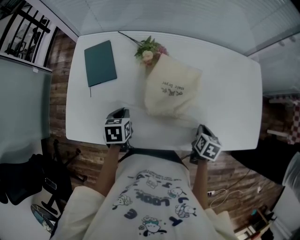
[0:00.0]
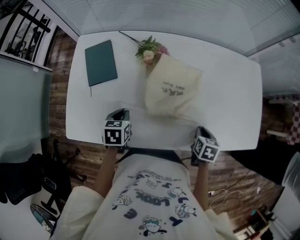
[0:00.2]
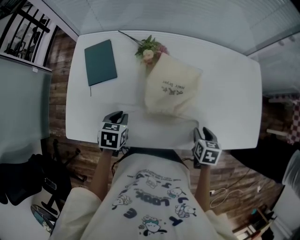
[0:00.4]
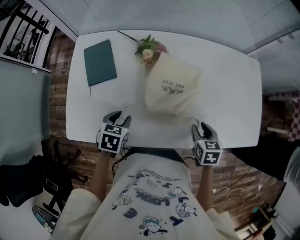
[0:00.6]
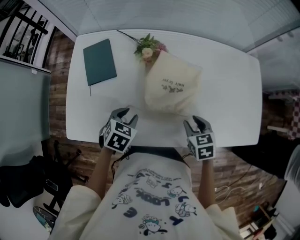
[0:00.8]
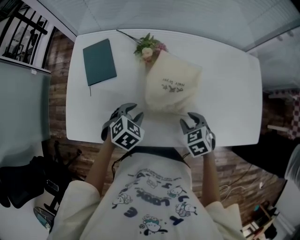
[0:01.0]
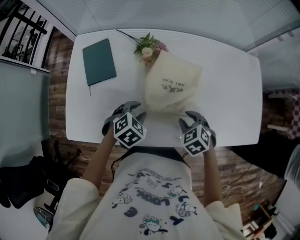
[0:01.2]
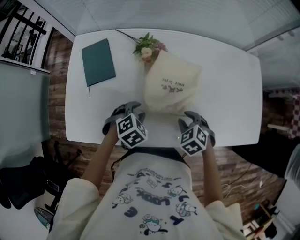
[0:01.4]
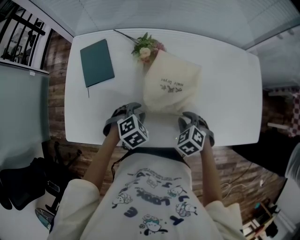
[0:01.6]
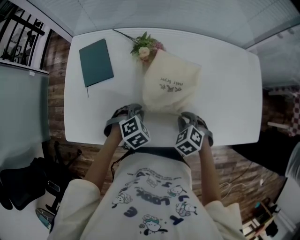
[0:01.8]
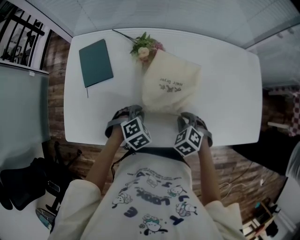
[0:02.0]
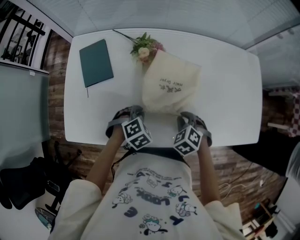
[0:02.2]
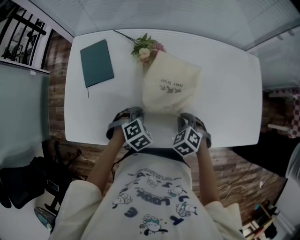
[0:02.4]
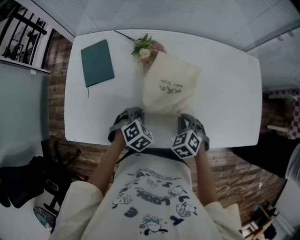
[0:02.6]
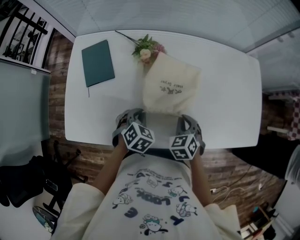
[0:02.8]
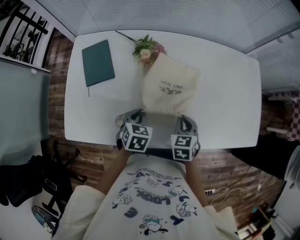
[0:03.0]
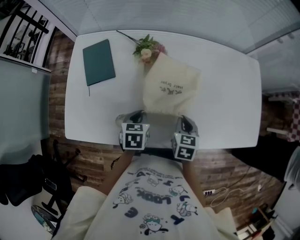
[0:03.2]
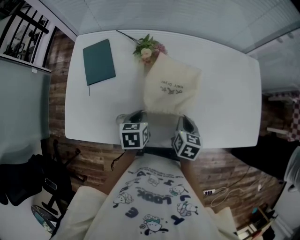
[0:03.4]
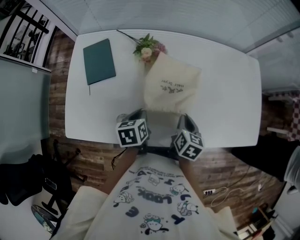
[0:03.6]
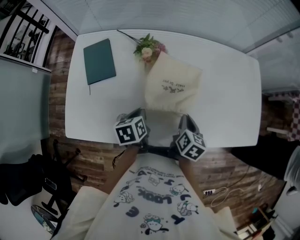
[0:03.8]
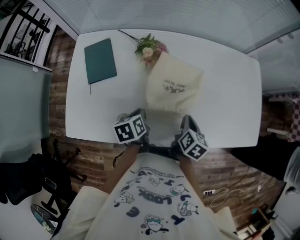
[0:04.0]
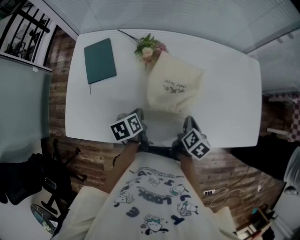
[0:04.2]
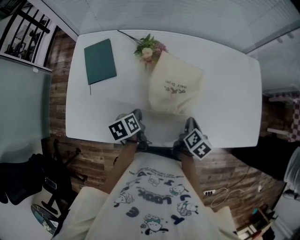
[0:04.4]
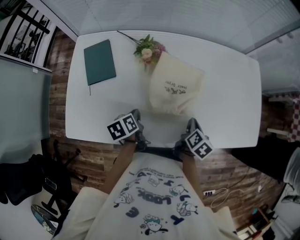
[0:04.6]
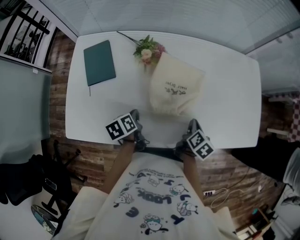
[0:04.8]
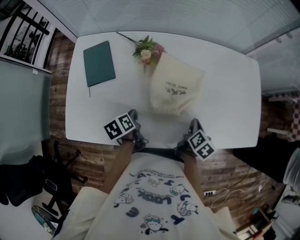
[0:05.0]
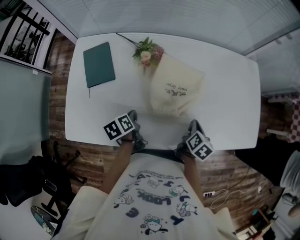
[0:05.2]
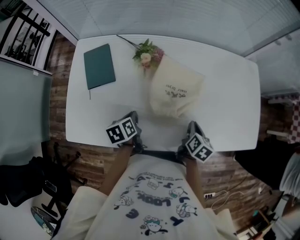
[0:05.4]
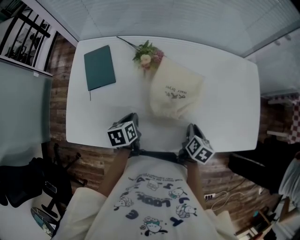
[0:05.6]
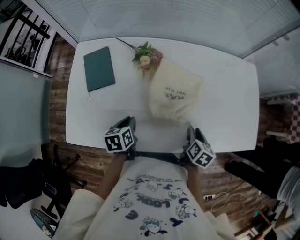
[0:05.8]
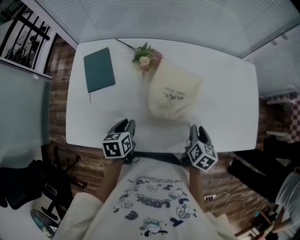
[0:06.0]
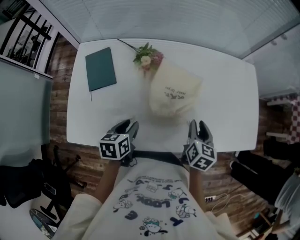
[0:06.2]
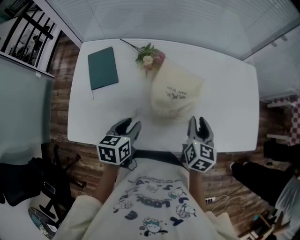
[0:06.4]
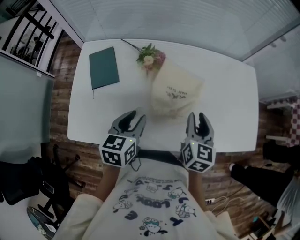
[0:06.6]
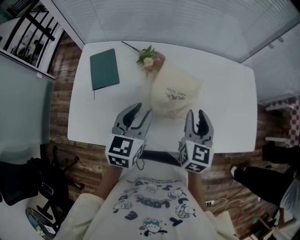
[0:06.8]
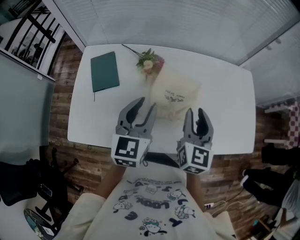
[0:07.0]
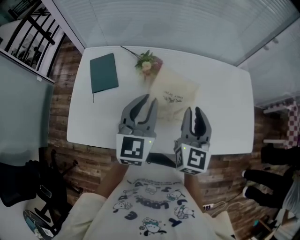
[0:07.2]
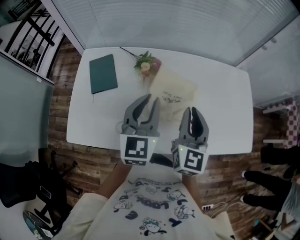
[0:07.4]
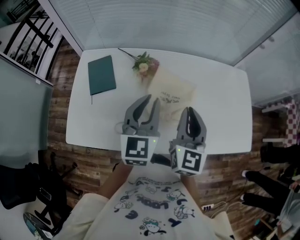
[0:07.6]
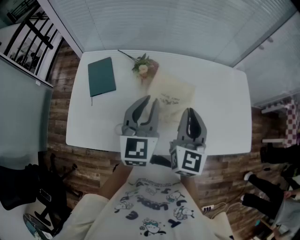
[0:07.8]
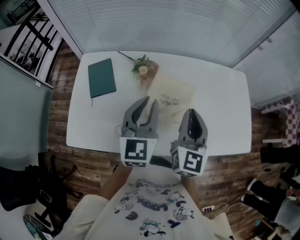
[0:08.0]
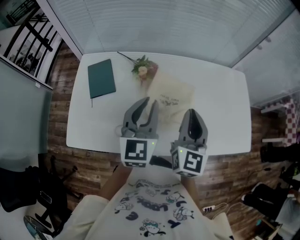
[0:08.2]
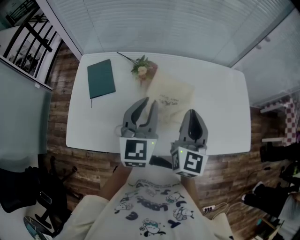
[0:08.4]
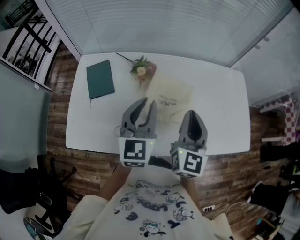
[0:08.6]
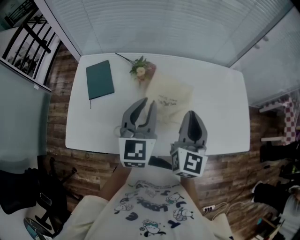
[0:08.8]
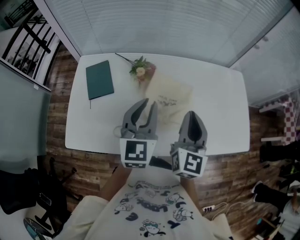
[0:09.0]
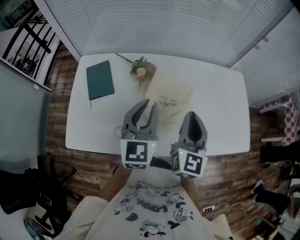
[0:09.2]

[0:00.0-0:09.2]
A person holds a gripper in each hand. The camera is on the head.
0:00.0 to 0:01.6: The left gripper shifts approximately 10 cm to the right, twists about 60 degrees clockwise, seen from behind, and opens its fingers. Meanwhile the right gripper is displaced to the left by roughly 15 cm, and rotates around the line of its fingers by about 70 degrees, counterclockwise from behind.
0:01.6 to 0:03.0: The right gripper rotates some 40 degrees. The left gripper rotates approximately 40 degrees, and closes.
0:03.0 to 0:04.6: The right gripper travels to the right by roughly 10 cm, and rotates around the line of its fingers by some 50 degrees, clockwise from behind. The left gripper rolls counterclockwise, seen from behind, by roughly 50 degrees.
0:04.6 to 0:06.2: The two grippers go roughly 5 cm upward. The left gripper changes its angle by roughly 30 degrees, and opens up. The right gripper turns by some 30 degrees, and opens its fingers.
0:06.2 to 0:07.6: The right gripper shifts approximately 20 cm upward and to the left, points its fingers approximately 30 degrees further upward, and closes its fingers; the left gripper is displaced upward and forward by about 20 cm, and angles its fingers upward, by about 40 degrees.
0:07.6 to 0:09.2: The grippers stay close to where they were, moving slightly.

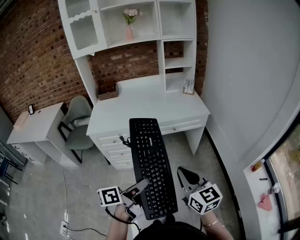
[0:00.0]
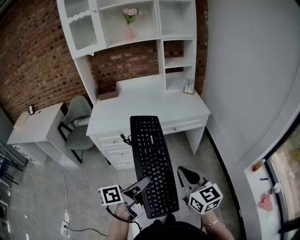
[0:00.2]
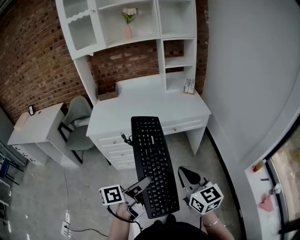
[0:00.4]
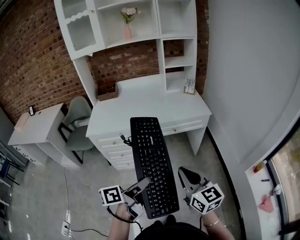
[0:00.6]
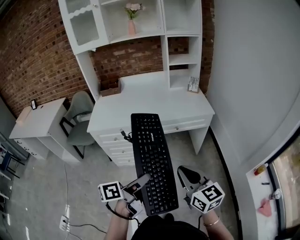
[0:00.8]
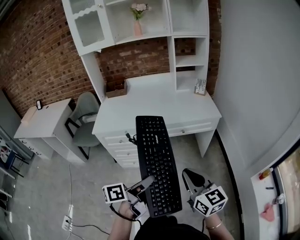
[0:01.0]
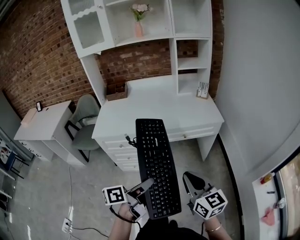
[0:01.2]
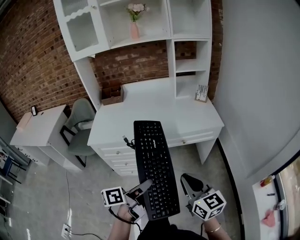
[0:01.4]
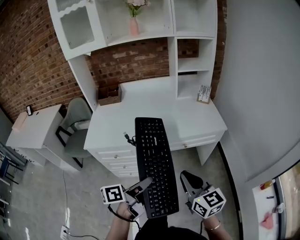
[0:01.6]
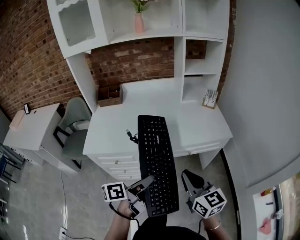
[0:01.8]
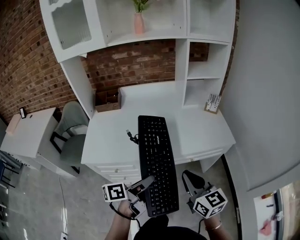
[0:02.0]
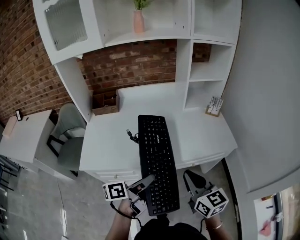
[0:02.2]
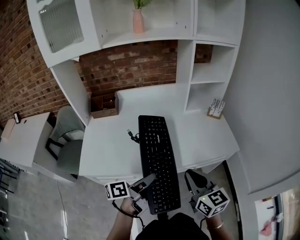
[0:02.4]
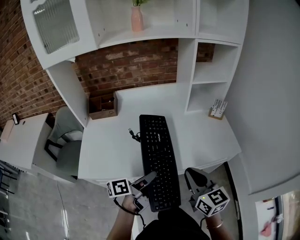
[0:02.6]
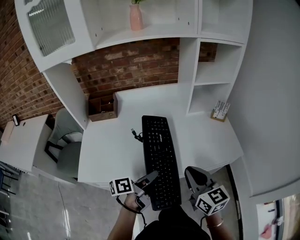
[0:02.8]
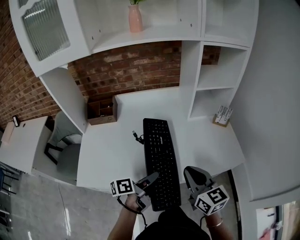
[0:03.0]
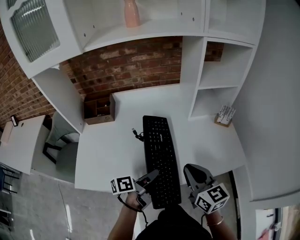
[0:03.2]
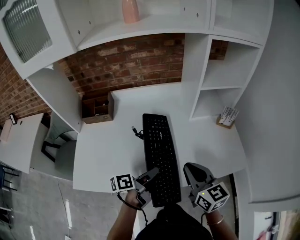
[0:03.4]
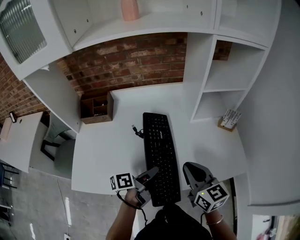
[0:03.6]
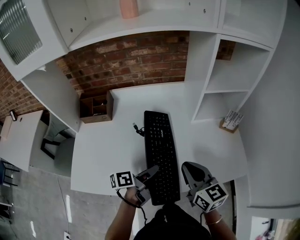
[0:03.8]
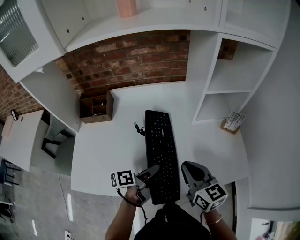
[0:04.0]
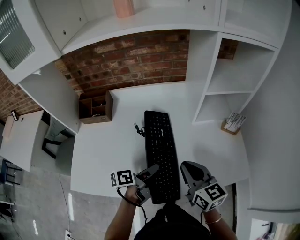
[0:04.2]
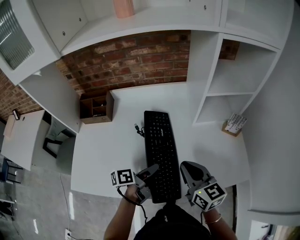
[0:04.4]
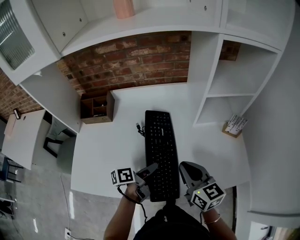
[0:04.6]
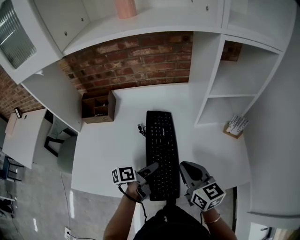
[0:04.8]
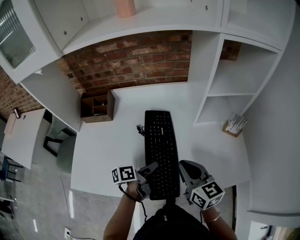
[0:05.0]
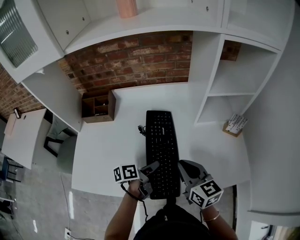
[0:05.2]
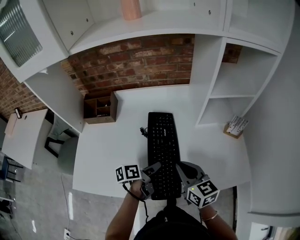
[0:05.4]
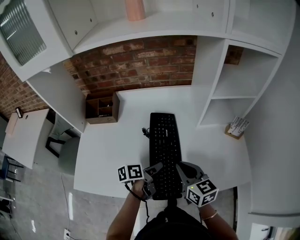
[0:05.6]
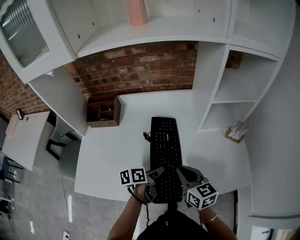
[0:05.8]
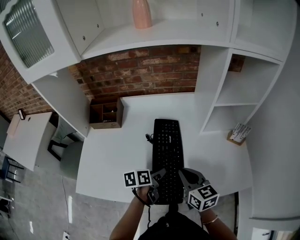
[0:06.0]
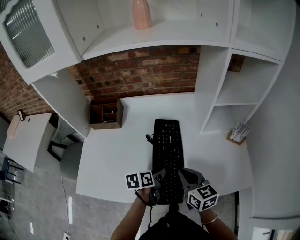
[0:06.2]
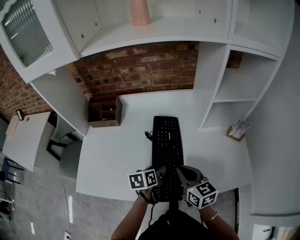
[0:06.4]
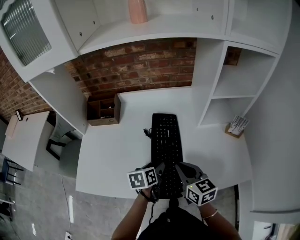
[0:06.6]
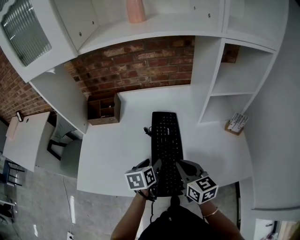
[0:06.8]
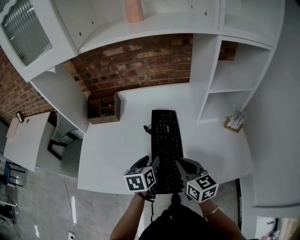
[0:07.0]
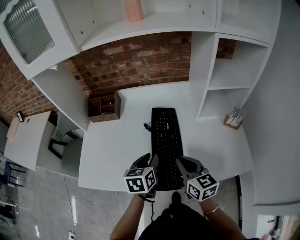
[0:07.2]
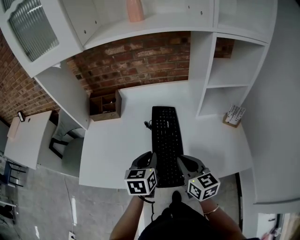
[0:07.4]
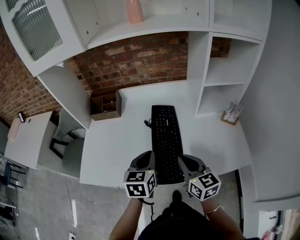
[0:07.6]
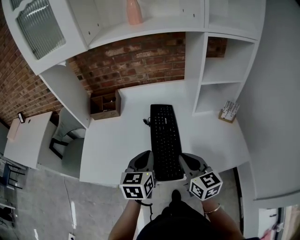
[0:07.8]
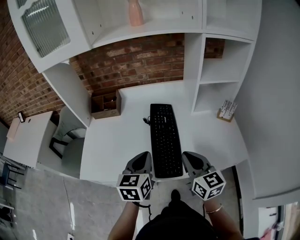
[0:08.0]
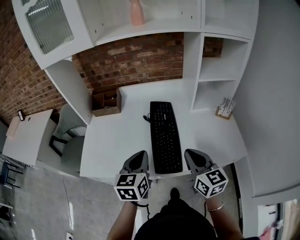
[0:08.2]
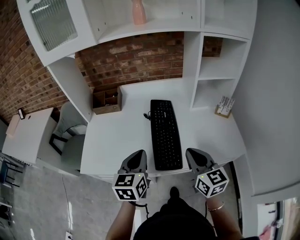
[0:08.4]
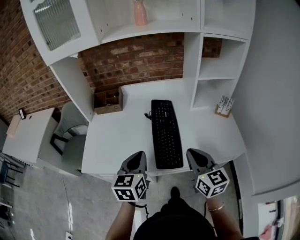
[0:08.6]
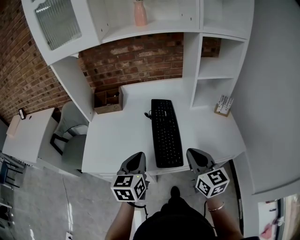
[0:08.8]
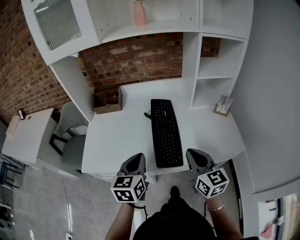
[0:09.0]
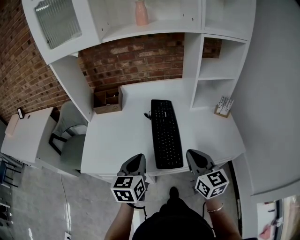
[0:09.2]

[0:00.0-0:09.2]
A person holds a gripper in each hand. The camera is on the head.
0:00.0 to 0:01.6: Both grippers travel together forward, some 20 cm.
0:01.6 to 0:03.0: The grippers both shift forward by about 30 cm.
0:03.0 to 0:04.6: The left gripper goes roughly 15 cm forward and downward; the right gripper goes approximately 15 cm forward.
0:04.6 to 0:06.2: The left gripper changes its angle by some 30 degrees, and opens. Meanwhile the right gripper changes place by some 5 cm.
0:06.2 to 0:07.6: The left gripper moves upward, about 15 cm, swivels approximately 40 degrees, and closes its fingers; the right gripper is displaced backward by about 5 cm.
0:07.6 to 0:09.2: The left gripper travels backward and to the left by some 10 cm, while the right gripper is displaced backward by some 10 cm.

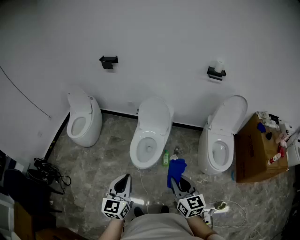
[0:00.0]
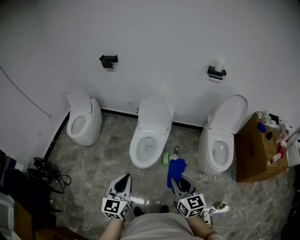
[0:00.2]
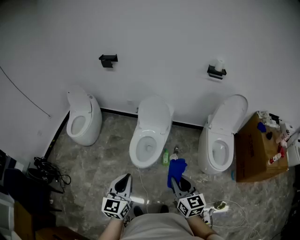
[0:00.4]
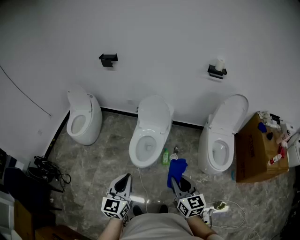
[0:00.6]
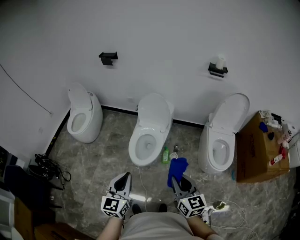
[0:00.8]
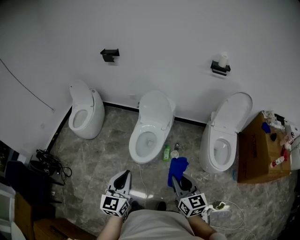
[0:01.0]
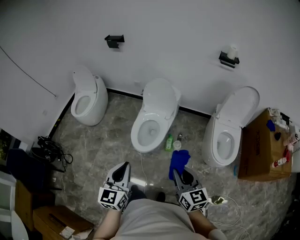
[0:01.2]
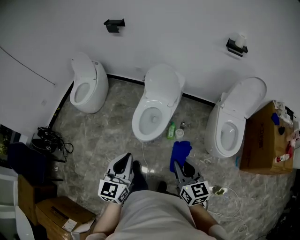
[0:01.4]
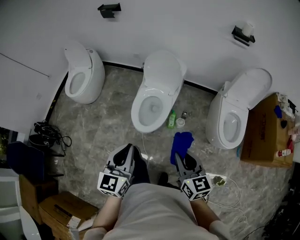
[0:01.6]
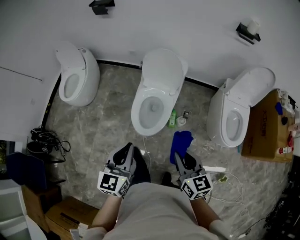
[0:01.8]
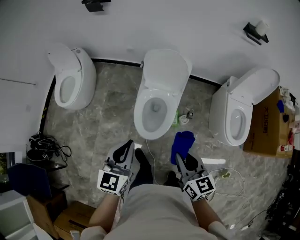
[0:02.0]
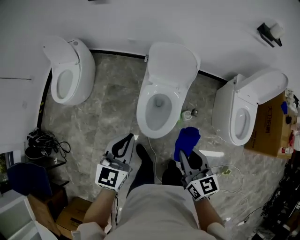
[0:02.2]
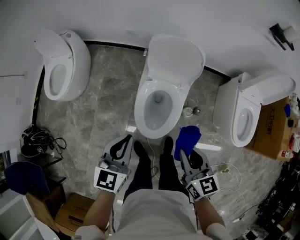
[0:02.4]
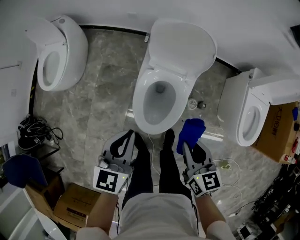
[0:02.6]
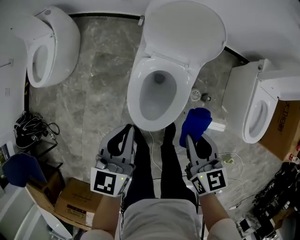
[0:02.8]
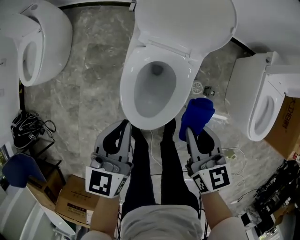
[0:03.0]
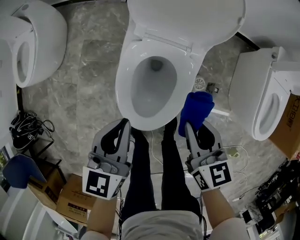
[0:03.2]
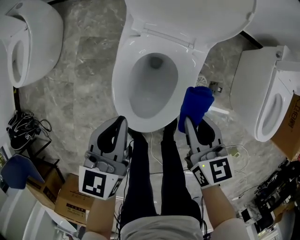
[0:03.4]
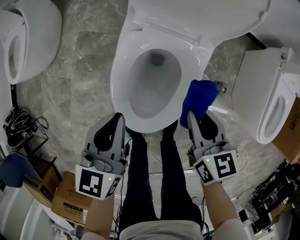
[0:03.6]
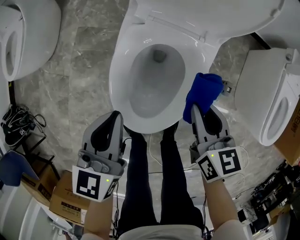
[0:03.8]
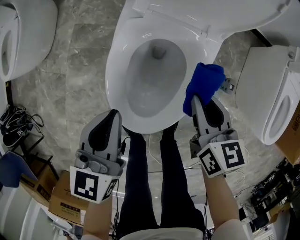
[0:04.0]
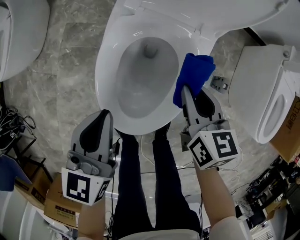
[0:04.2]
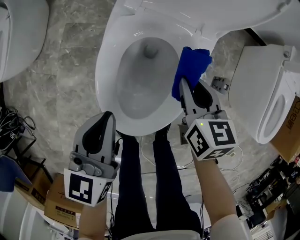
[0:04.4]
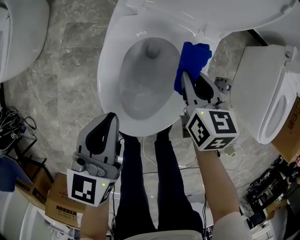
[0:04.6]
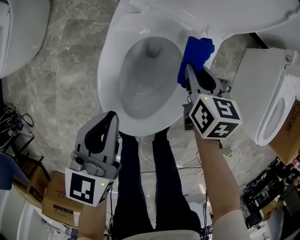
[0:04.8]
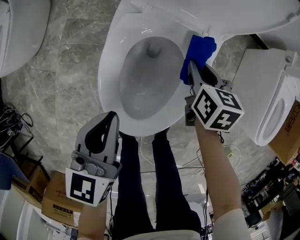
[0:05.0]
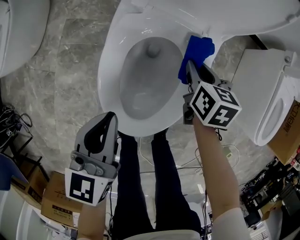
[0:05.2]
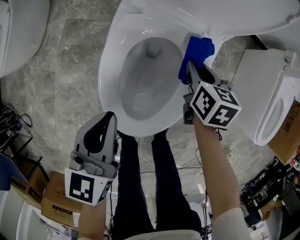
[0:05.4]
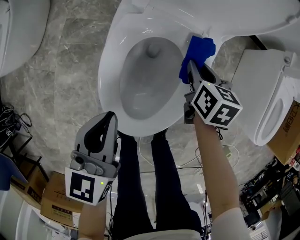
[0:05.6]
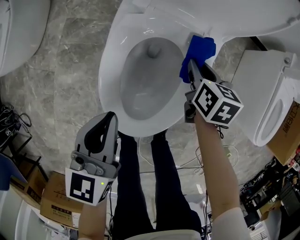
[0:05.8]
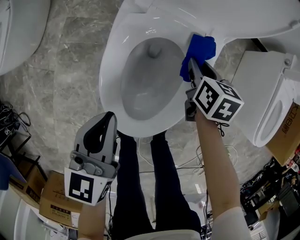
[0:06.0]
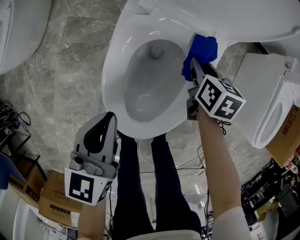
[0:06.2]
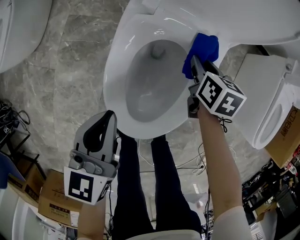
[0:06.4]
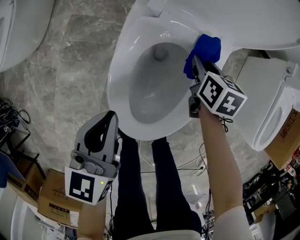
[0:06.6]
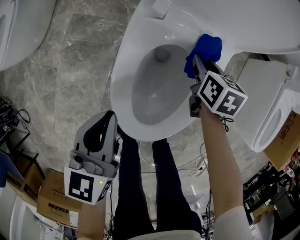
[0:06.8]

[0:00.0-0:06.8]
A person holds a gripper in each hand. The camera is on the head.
0:00.0 to 0:01.4: The left gripper moves about 5 cm; the right gripper moves about 5 cm.
0:01.4 to 0:02.8: The grippers both shift forward and downward by about 40 cm.
0:02.8 to 0:04.0: The two grippers go some 25 cm downward.
0:04.0 to 0:05.4: The right gripper heads downward and forward, covering some 15 cm.
0:05.4 to 0:06.8: The right gripper changes place by about 5 cm.
